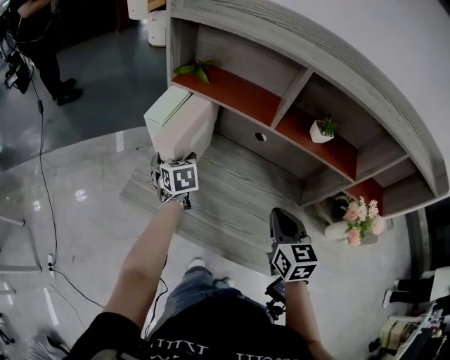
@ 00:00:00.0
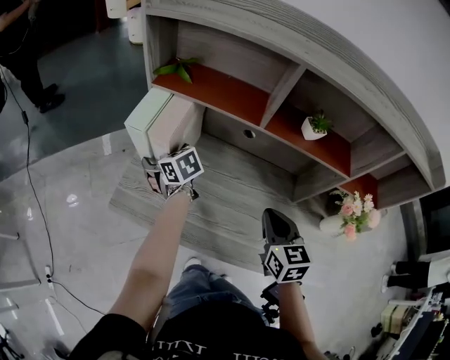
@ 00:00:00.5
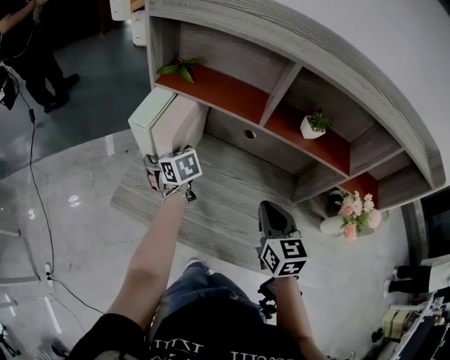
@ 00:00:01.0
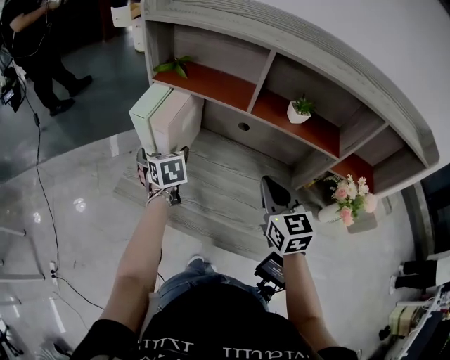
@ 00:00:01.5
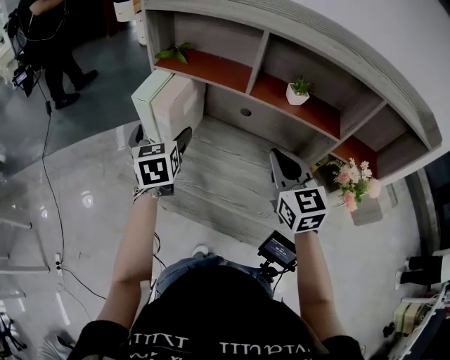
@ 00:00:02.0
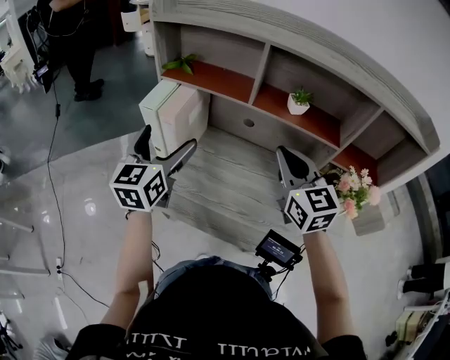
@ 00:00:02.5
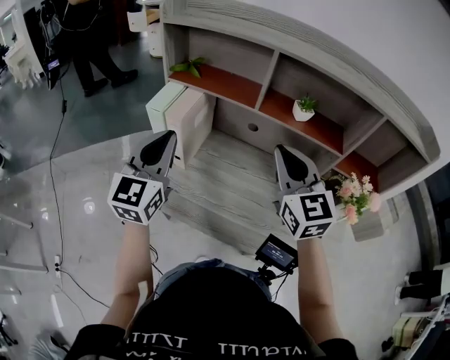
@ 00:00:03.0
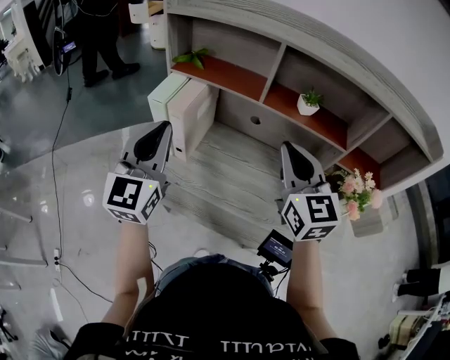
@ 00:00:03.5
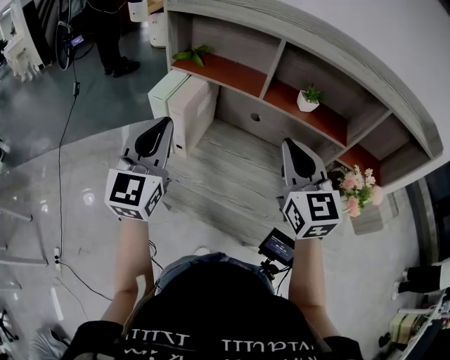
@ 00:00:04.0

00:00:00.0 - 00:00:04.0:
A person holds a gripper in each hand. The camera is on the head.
00:00:00.0 - 00:00:02.0: The right gripper heads upward, covering roughly 10 cm, while the left gripper is displaced upward and backward by about 15 cm.
00:00:02.0 - 00:00:04.0: The left gripper moves upward and backward, roughly 15 cm, turns by about 40 degrees, and closes, while the right gripper is displaced upward by approximately 10 cm.

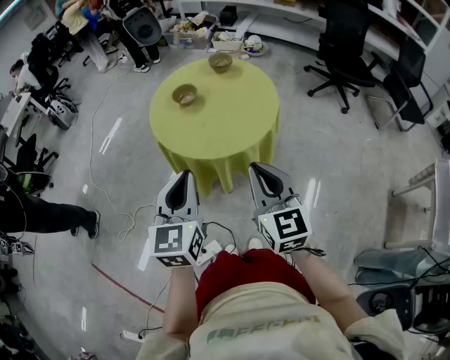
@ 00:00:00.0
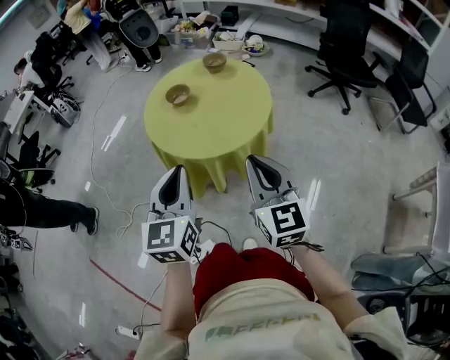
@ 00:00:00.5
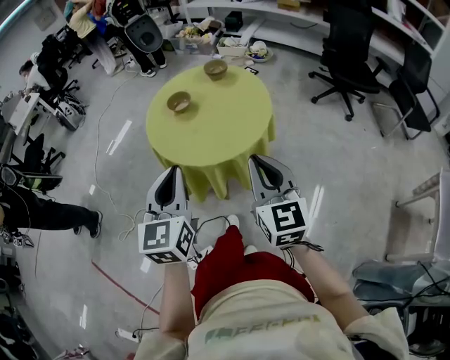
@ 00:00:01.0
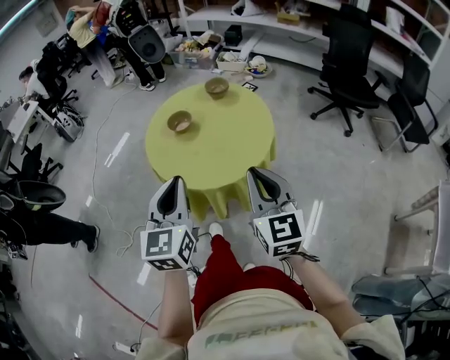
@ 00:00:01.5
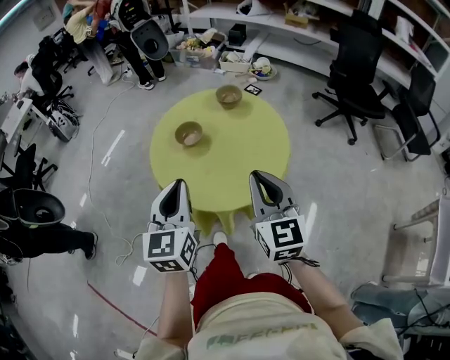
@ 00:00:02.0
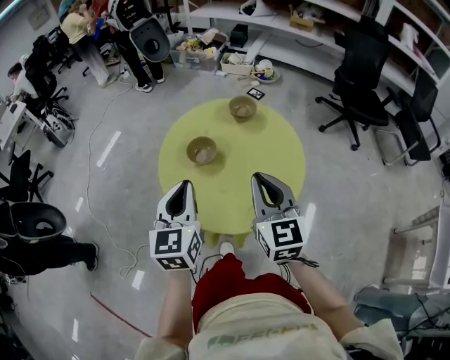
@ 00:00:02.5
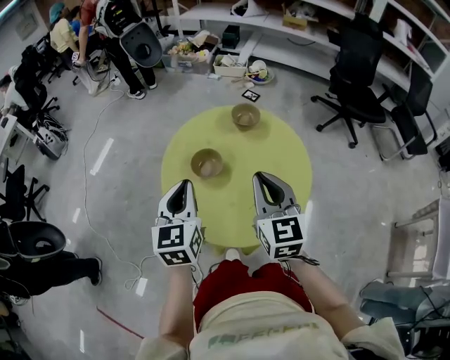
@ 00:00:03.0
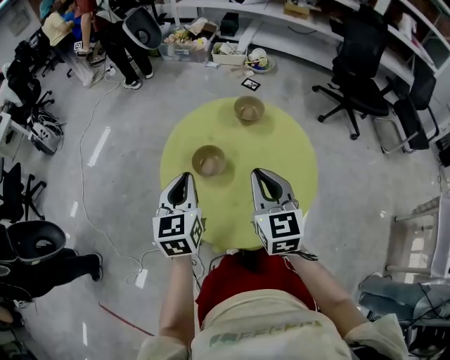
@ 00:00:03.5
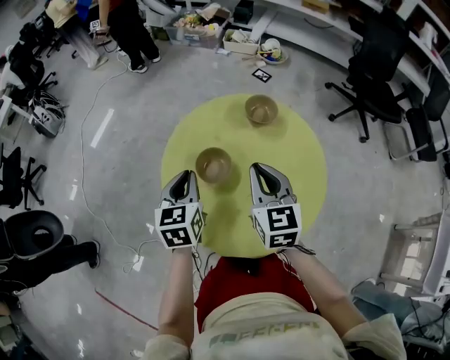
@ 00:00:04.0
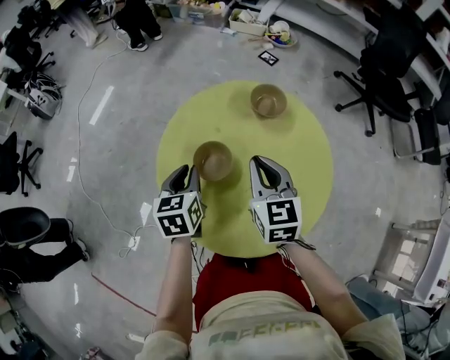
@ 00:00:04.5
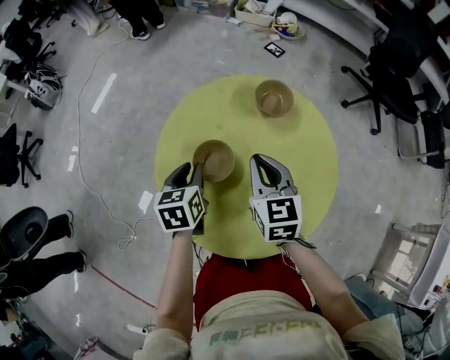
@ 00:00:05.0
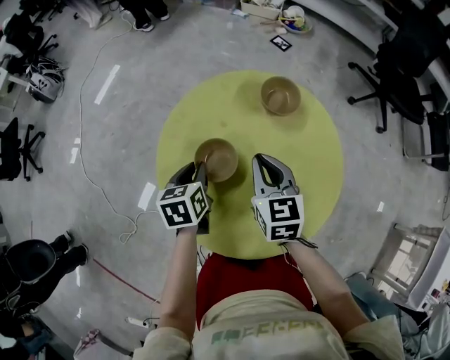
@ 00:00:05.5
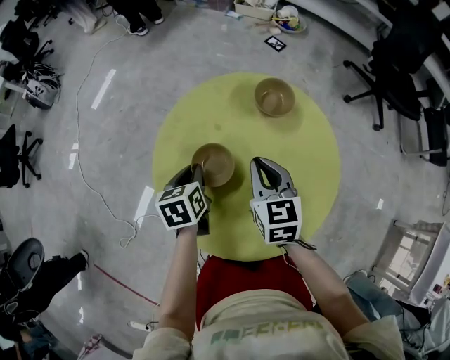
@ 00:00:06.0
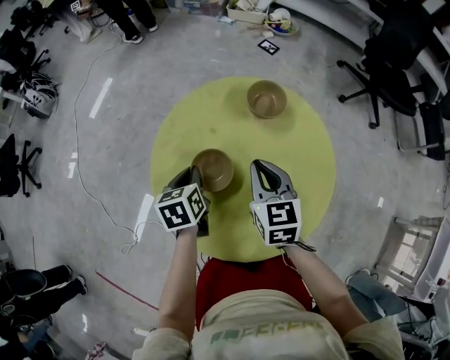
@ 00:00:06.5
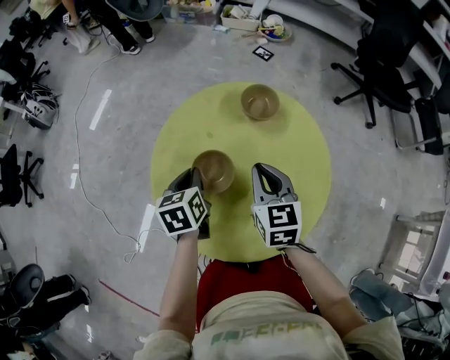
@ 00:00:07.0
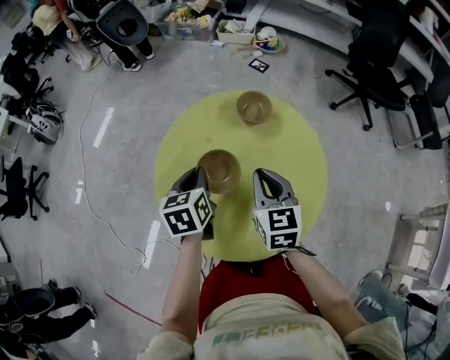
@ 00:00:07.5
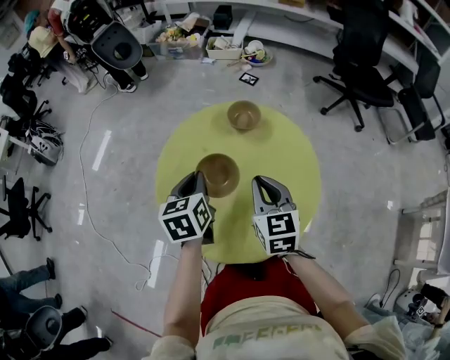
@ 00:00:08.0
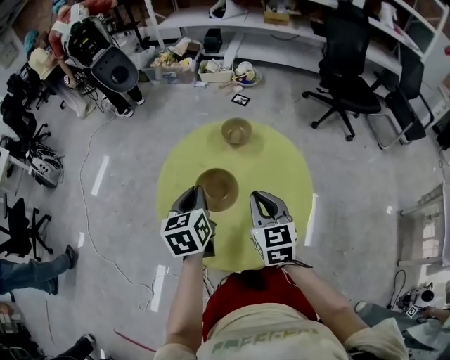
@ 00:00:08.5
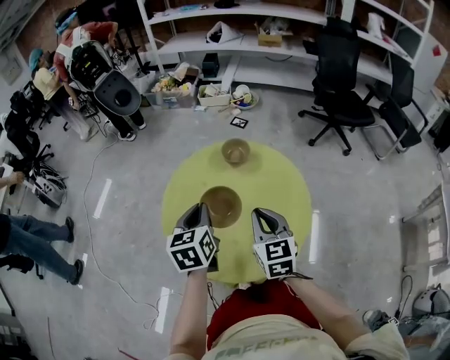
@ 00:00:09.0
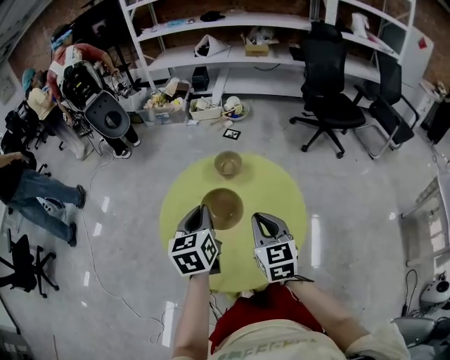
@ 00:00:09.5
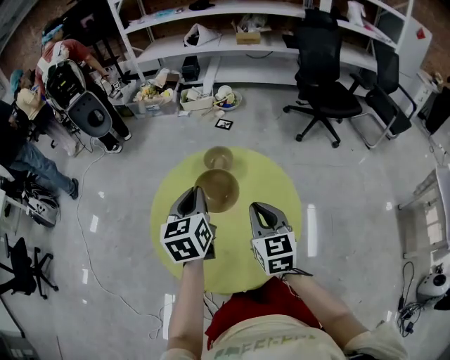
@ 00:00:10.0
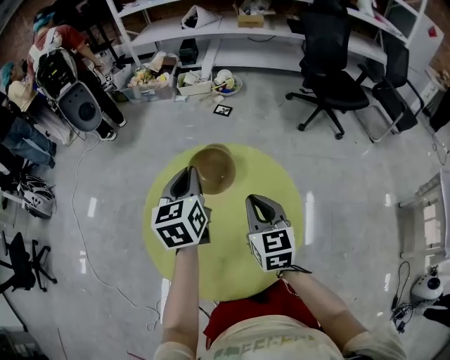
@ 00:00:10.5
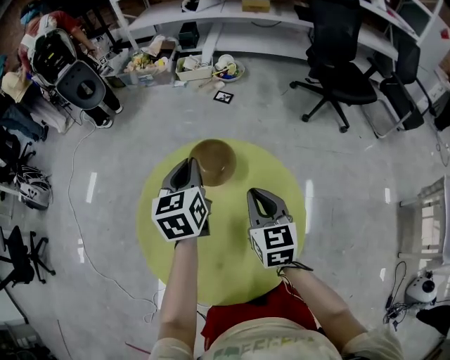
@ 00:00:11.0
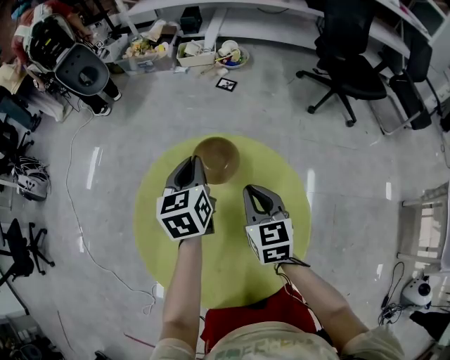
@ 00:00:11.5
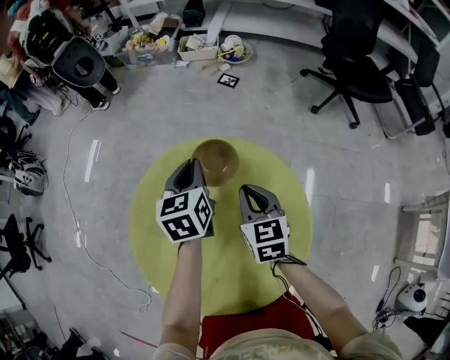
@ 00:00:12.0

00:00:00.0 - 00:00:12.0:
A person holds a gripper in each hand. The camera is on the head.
00:00:00.0 - 00:00:02.0: Both grippers move forward, about 20 cm.
00:00:02.0 - 00:00:04.0: The left gripper heads forward, covering roughly 30 cm. Meanwhile the right gripper moves forward and to the left, some 35 cm.
00:00:04.0 - 00:00:06.0: Both grippers travel together downward and forward, some 15 cm. The left gripper rotates some 30 degrees.
00:00:06.0 - 00:00:08.0: The right gripper moves backward and upward, some 10 cm. The left gripper shifts about 15 cm upward and to the right.
00:00:08.0 - 00:00:10.0: The right gripper travels to the right by approximately 5 cm. The left gripper moves upward and to the right, about 15 cm.
00:00:10.0 - 00:00:12.0: Both grippers move forward and downward, about 30 cm.

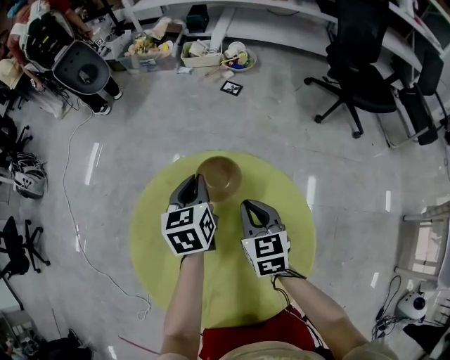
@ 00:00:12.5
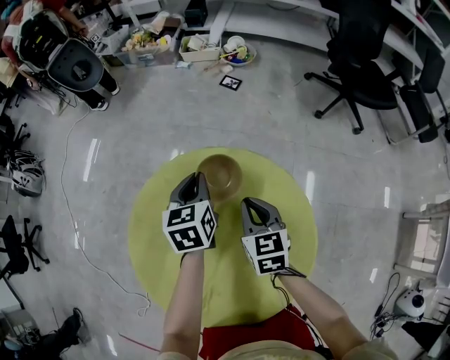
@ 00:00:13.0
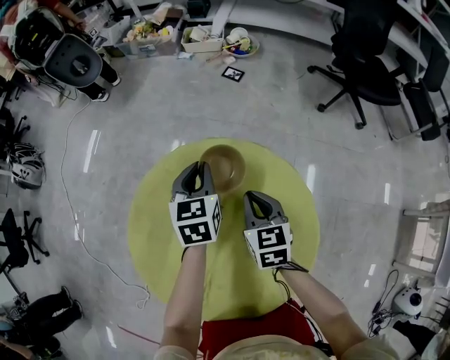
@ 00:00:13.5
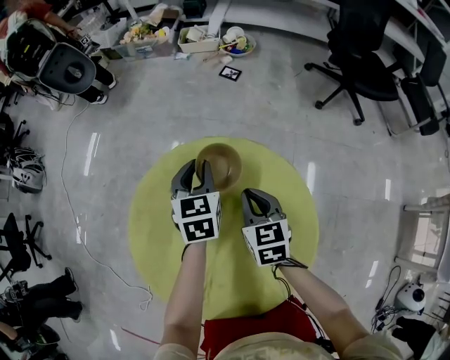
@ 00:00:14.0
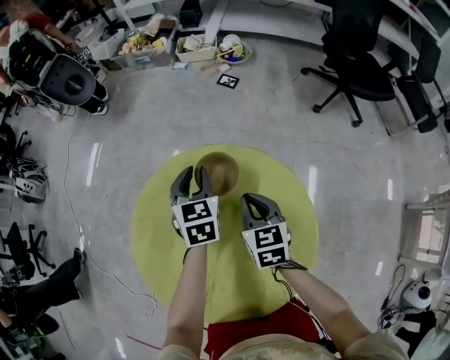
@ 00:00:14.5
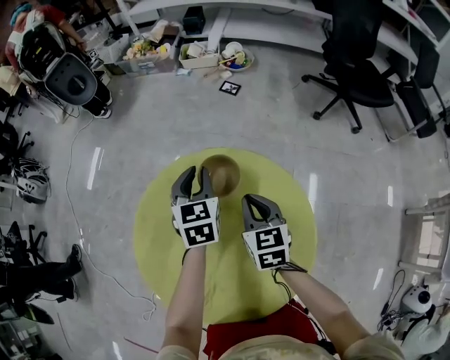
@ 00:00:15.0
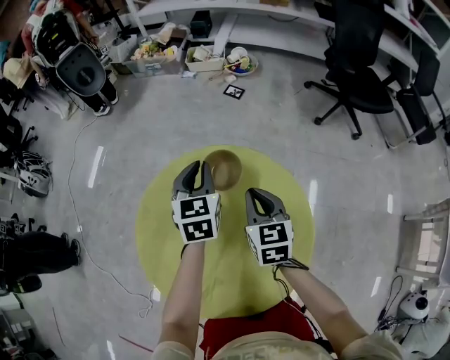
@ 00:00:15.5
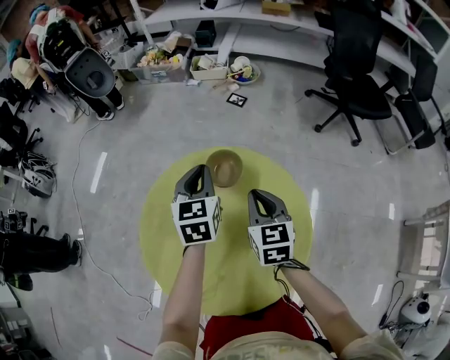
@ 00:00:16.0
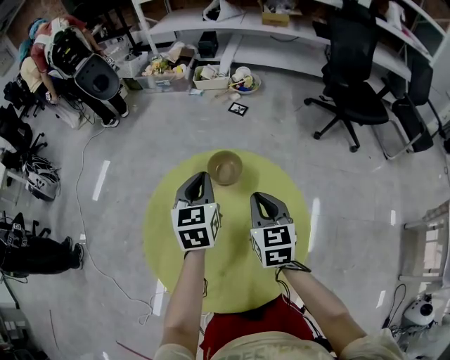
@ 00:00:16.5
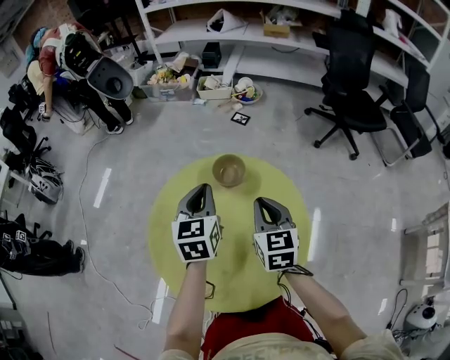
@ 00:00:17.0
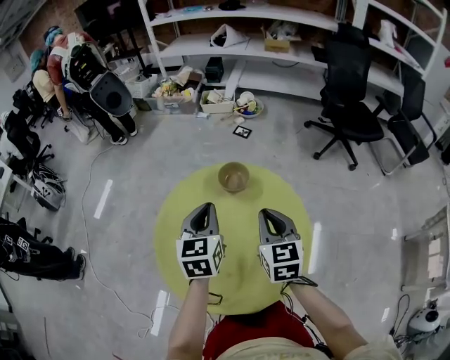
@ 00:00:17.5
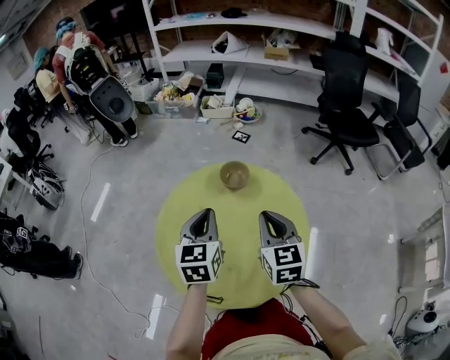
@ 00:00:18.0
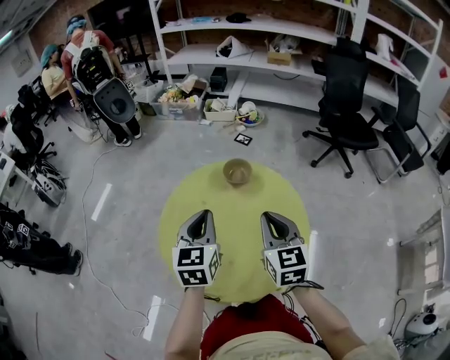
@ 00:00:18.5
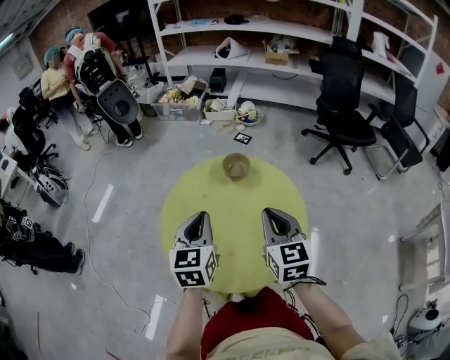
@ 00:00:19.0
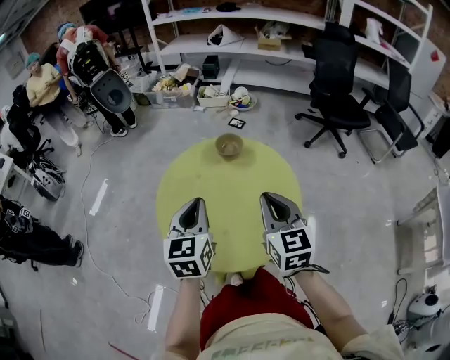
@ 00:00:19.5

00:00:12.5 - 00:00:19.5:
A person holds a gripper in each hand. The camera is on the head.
00:00:12.5 - 00:00:14.5: The grippers stay close to where they were, moving slightly.
00:00:14.5 - 00:00:16.0: The two grippers go some 10 cm upward and backward.
00:00:16.0 - 00:00:17.5: The left gripper is displaced backward by roughly 15 cm. Meanwhile the right gripper moves backward and upward, some 15 cm.
00:00:17.5 - 00:00:19.5: The two grippers go roughly 20 cm backward.

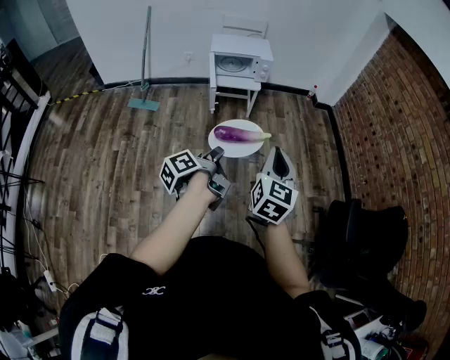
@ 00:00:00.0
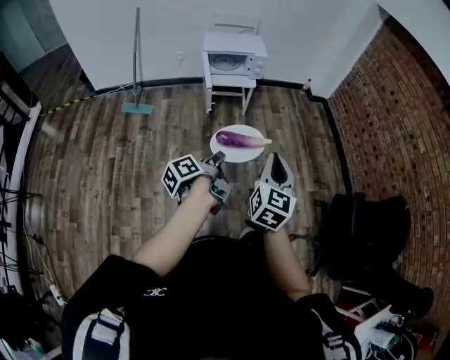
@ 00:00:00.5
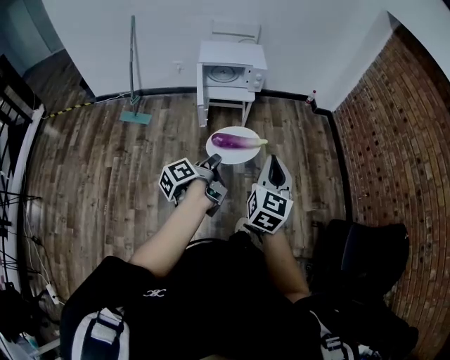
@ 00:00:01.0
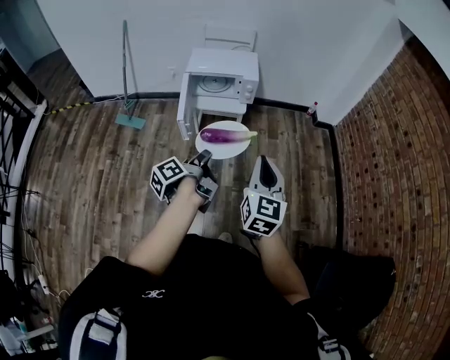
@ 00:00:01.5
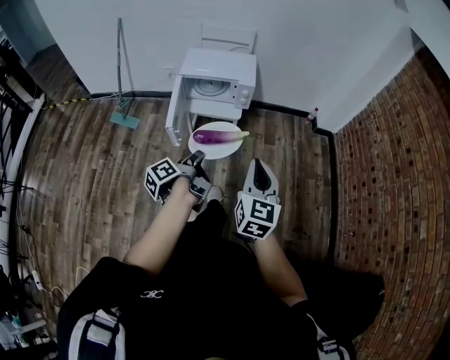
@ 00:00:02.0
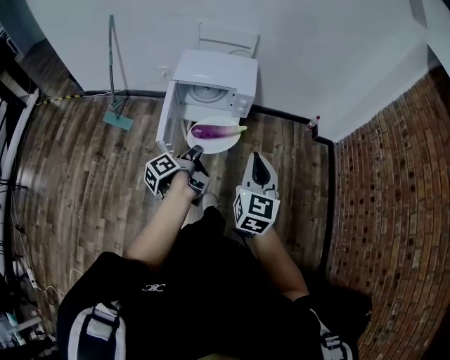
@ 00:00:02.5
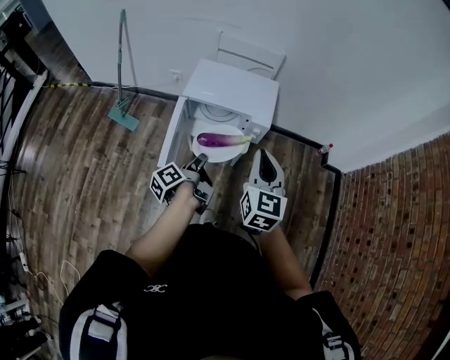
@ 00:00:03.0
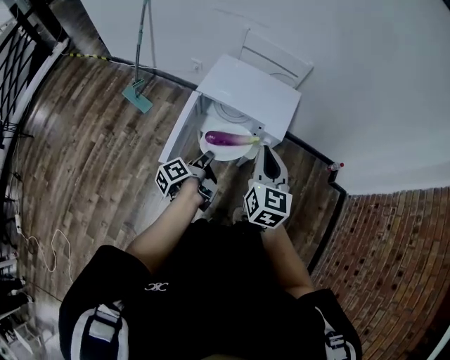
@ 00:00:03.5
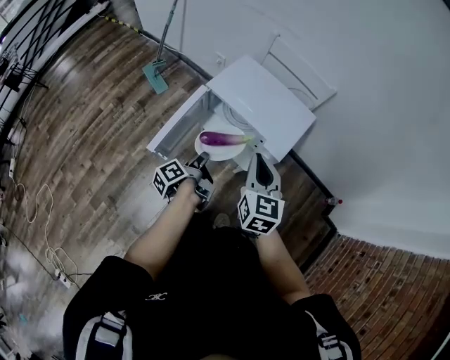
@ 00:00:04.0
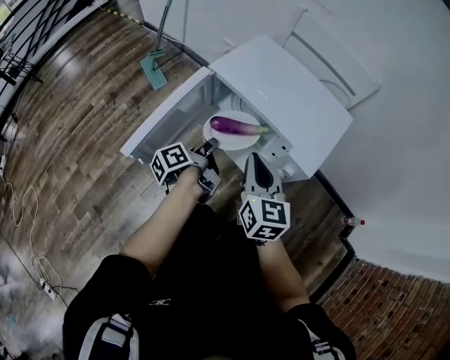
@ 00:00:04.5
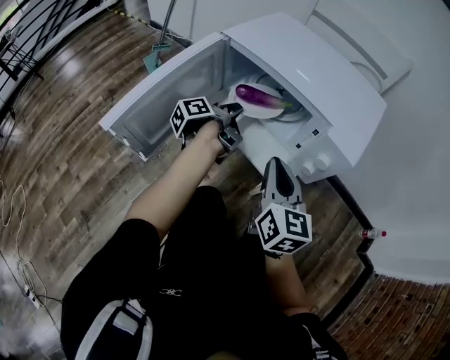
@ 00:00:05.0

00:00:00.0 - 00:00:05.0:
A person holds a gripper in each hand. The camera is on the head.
00:00:00.0 - 00:00:02.5: The right gripper ends up approximately 50 cm from where it was.
00:00:02.5 - 00:00:05.0: The right gripper goes about 40 cm downward, and rotates approximately 40 degrees.
